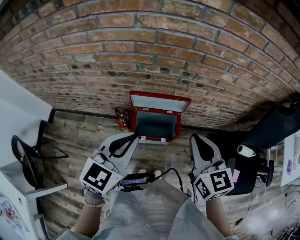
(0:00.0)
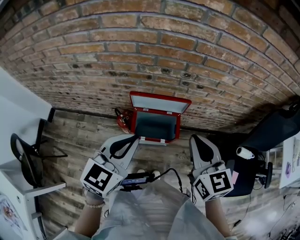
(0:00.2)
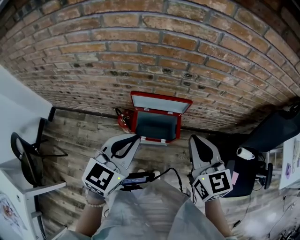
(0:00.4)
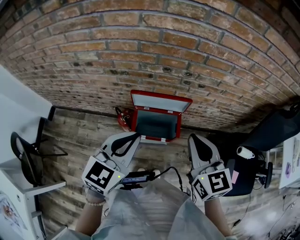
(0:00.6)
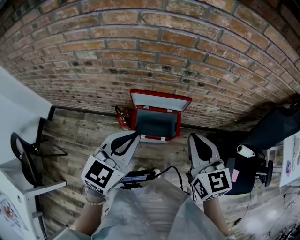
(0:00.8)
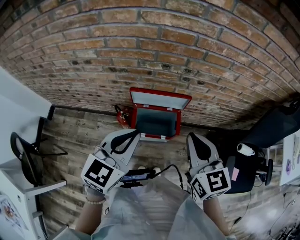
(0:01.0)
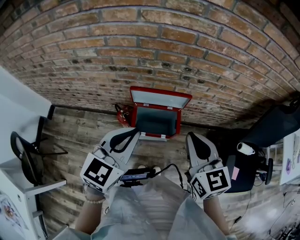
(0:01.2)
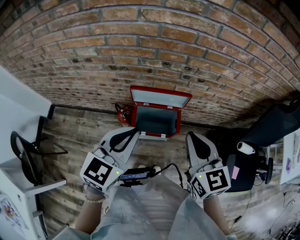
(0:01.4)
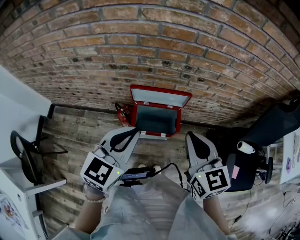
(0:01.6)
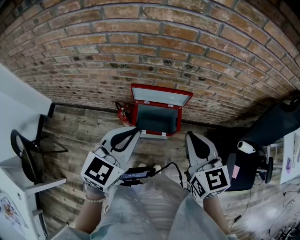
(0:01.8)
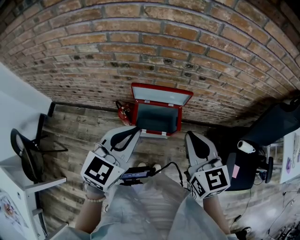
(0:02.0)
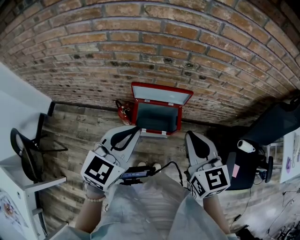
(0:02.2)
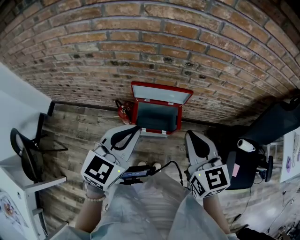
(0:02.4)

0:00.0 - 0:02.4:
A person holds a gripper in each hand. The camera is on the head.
0:00.0 - 0:02.4: The grippers stay close to where they were, moving slightly.

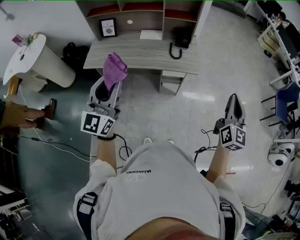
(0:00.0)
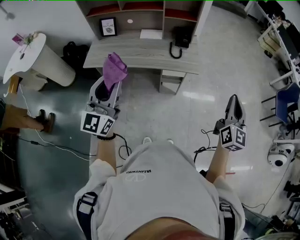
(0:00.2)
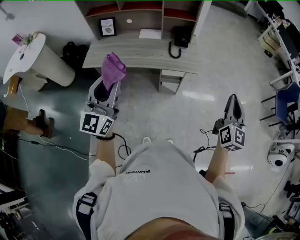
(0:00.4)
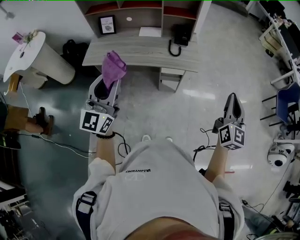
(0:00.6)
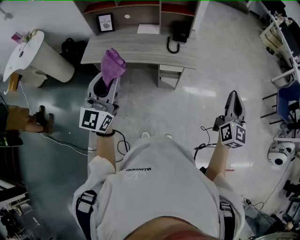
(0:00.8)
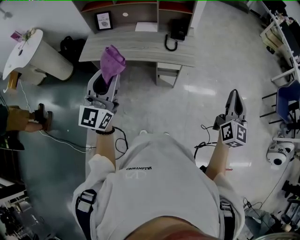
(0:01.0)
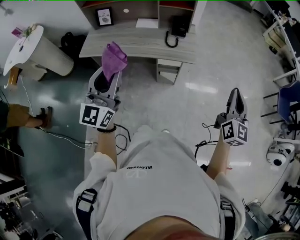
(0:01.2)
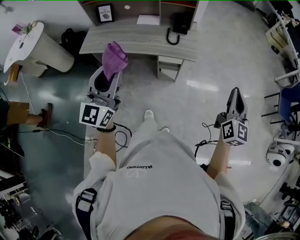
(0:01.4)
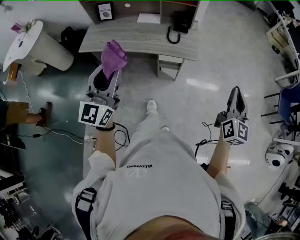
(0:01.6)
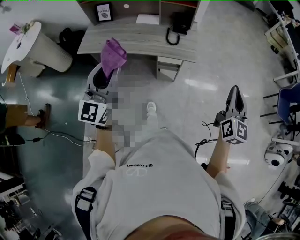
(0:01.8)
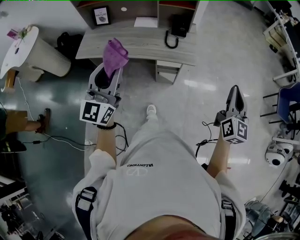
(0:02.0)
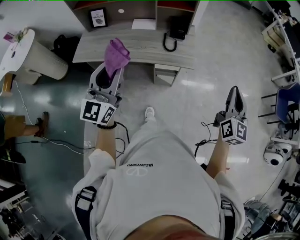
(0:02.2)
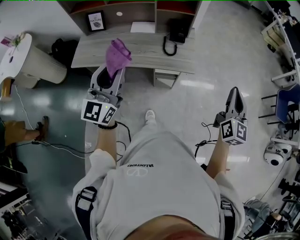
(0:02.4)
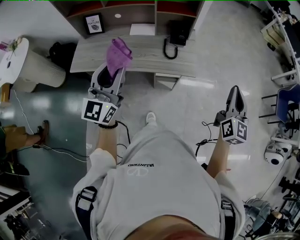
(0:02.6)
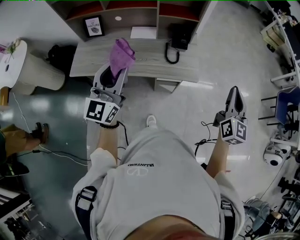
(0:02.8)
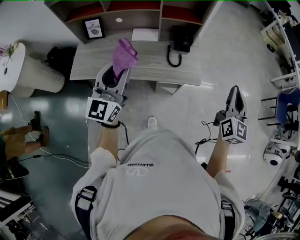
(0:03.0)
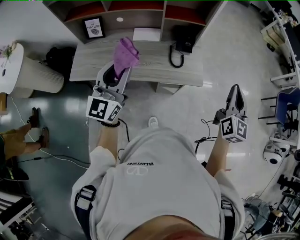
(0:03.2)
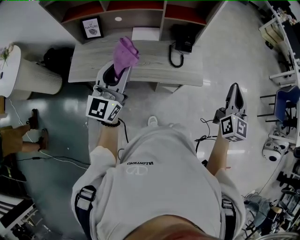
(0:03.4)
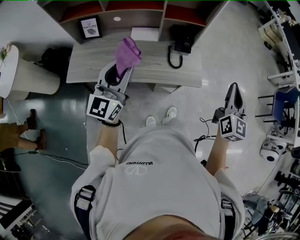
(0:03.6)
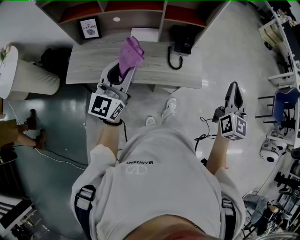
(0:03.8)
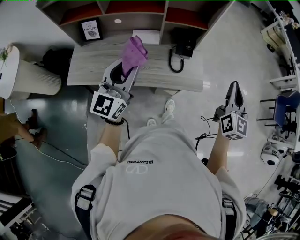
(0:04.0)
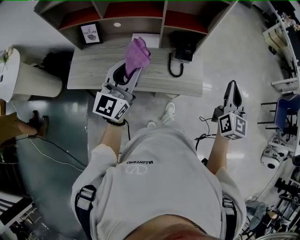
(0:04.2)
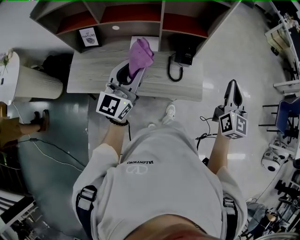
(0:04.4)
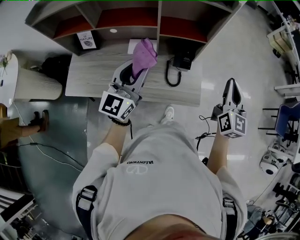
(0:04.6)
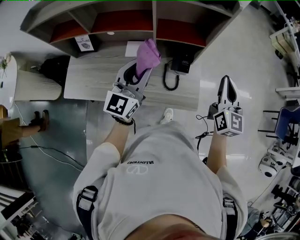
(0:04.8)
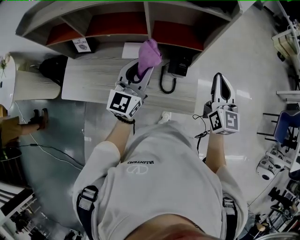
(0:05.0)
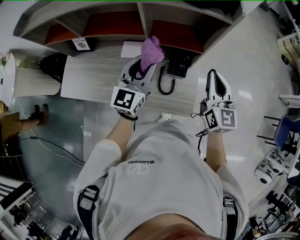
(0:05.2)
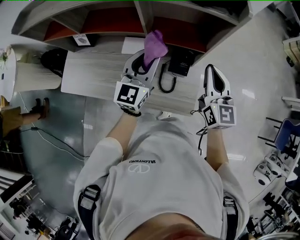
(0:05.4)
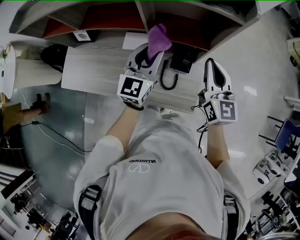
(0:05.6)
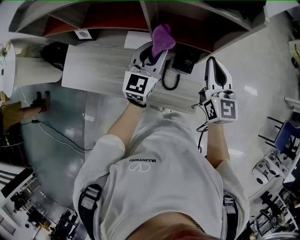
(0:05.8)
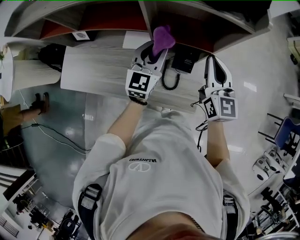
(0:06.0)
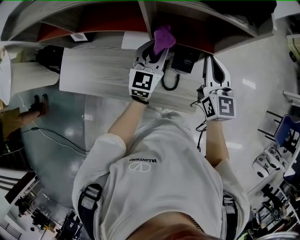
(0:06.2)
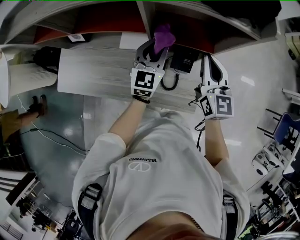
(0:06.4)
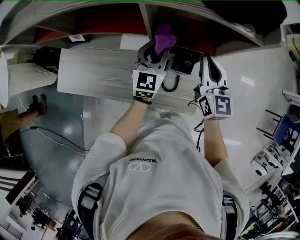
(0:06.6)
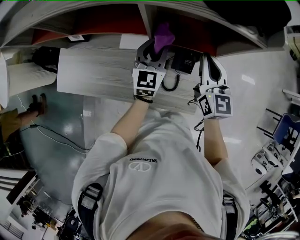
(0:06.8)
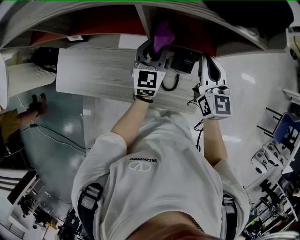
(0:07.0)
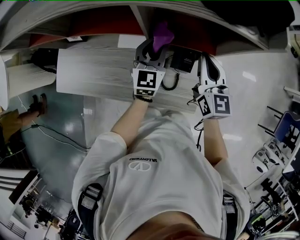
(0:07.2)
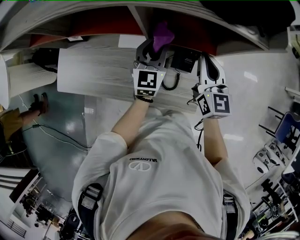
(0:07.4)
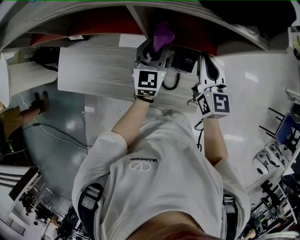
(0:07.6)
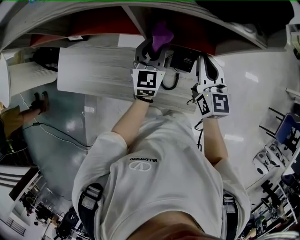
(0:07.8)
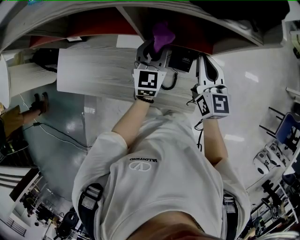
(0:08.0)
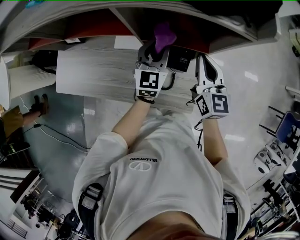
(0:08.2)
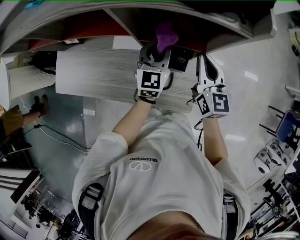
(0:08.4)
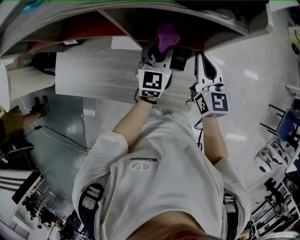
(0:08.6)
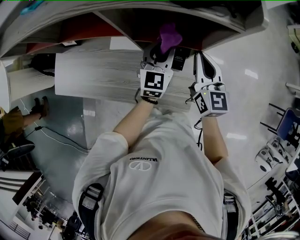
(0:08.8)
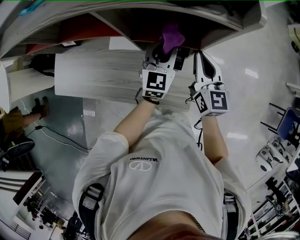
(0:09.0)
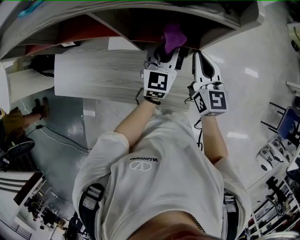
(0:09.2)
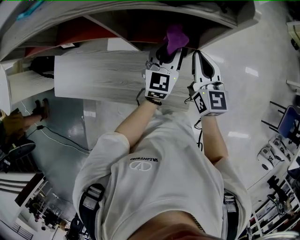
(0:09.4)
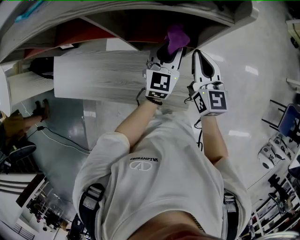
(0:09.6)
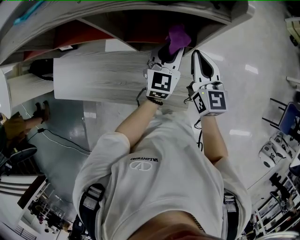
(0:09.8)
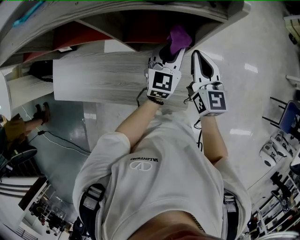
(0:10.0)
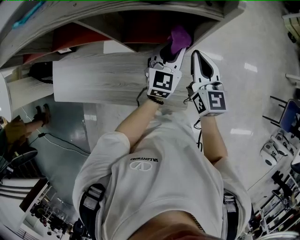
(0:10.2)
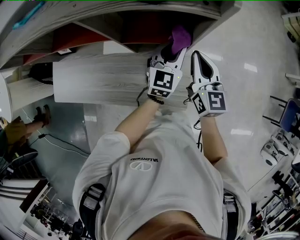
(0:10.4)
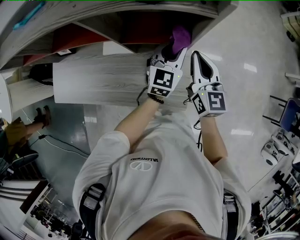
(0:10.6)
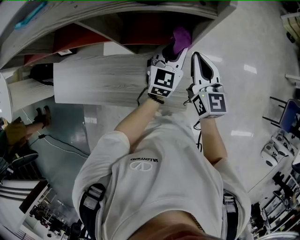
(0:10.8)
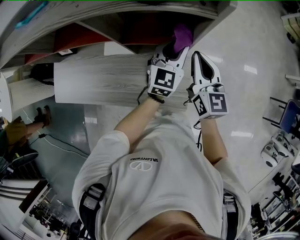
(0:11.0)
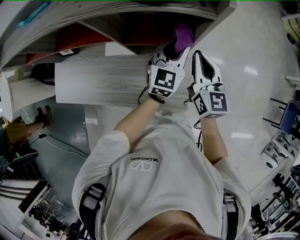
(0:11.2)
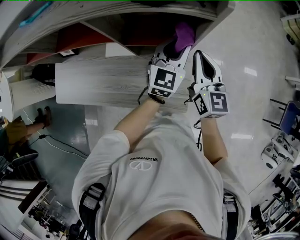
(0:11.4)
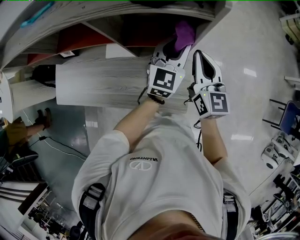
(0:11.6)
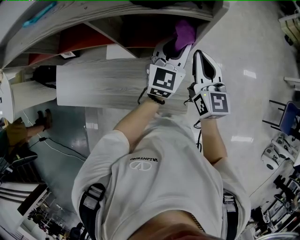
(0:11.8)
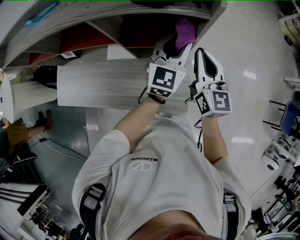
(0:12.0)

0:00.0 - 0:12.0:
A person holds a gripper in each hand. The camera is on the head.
0:00.0 - 0:01.6: Both grippers travel together to the right, some 5 cm.
0:01.6 - 0:03.0: The right gripper is displaced forward and to the left by roughly 20 cm; the left gripper goes some 25 cm forward.
0:03.0 - 0:04.4: The two grippers go some 15 cm forward.
0:04.4 - 0:06.0: The left gripper moves forward and downward, some 25 cm. The right gripper moves forward, roughly 25 cm, and swivels roughly 20 degrees.
0:06.0 - 0:07.6: Both grippers travel together downward, about 5 cm.
0:07.6 - 0:09.0: The right gripper shifts some 5 cm to the right. The left gripper goes about 10 cm to the right.
0:09.0 - 0:10.4: The left gripper goes about 5 cm to the right.
0:10.4 - 0:12.0: The left gripper travels upward by roughly 10 cm. The right gripper is displaced upward by approximately 5 cm.

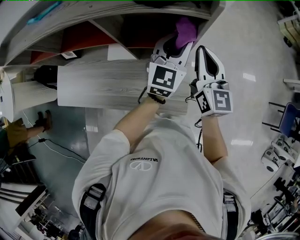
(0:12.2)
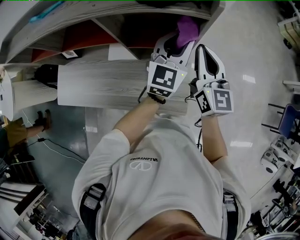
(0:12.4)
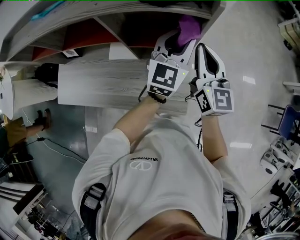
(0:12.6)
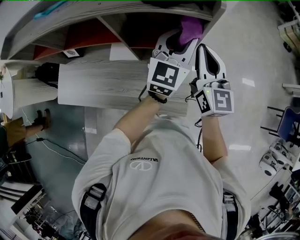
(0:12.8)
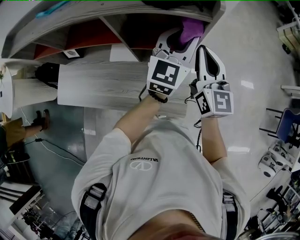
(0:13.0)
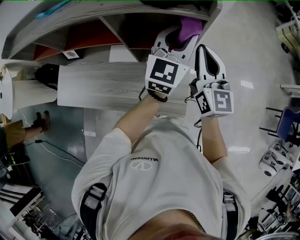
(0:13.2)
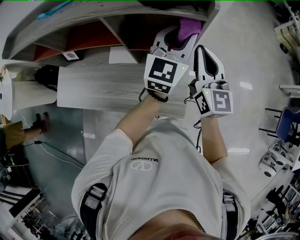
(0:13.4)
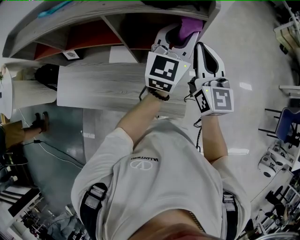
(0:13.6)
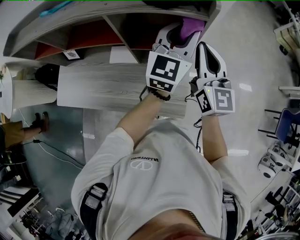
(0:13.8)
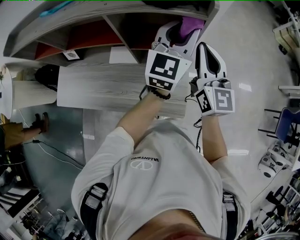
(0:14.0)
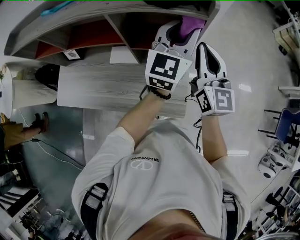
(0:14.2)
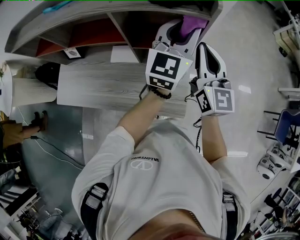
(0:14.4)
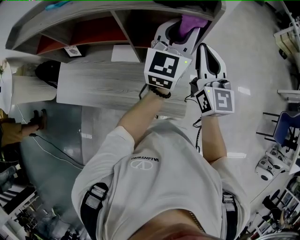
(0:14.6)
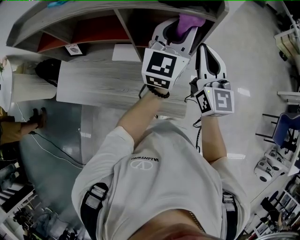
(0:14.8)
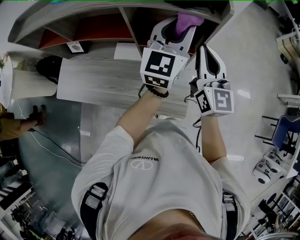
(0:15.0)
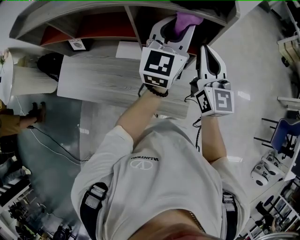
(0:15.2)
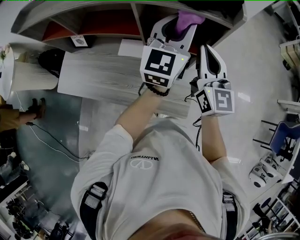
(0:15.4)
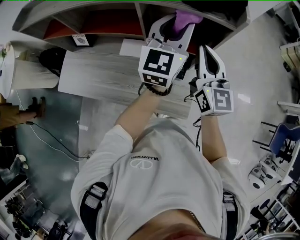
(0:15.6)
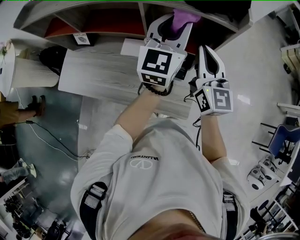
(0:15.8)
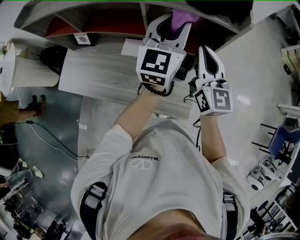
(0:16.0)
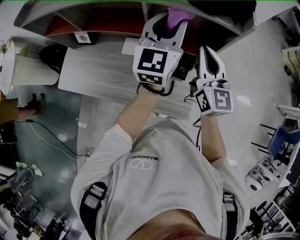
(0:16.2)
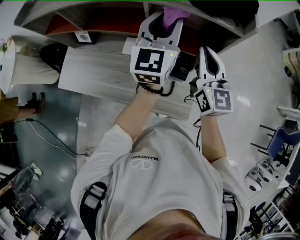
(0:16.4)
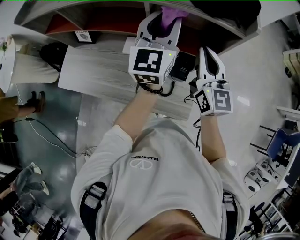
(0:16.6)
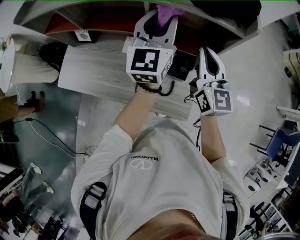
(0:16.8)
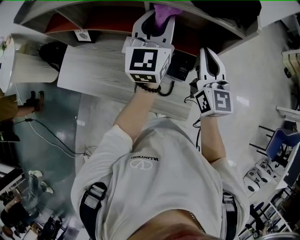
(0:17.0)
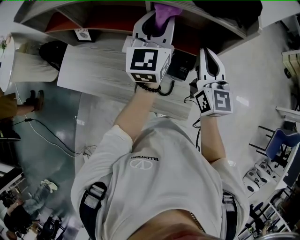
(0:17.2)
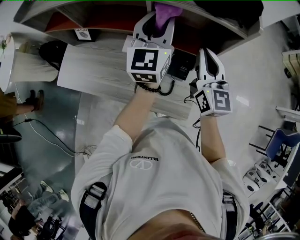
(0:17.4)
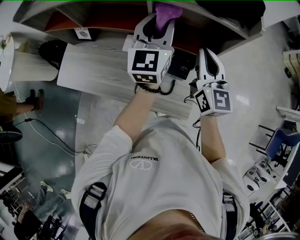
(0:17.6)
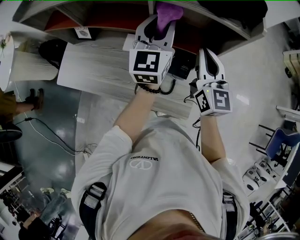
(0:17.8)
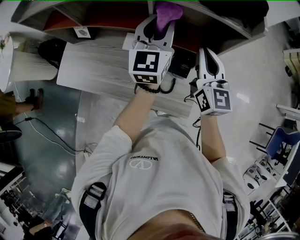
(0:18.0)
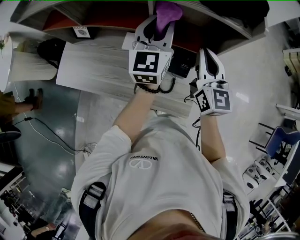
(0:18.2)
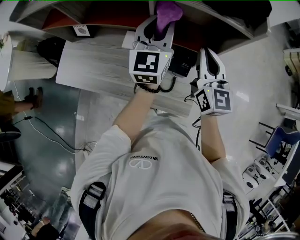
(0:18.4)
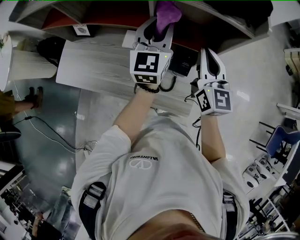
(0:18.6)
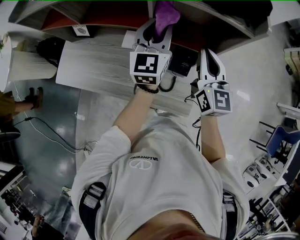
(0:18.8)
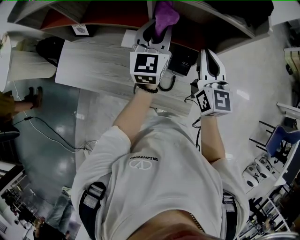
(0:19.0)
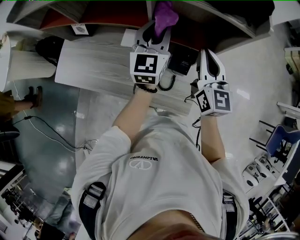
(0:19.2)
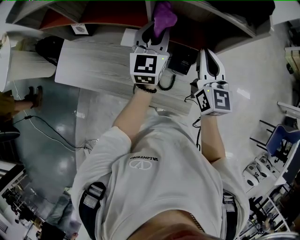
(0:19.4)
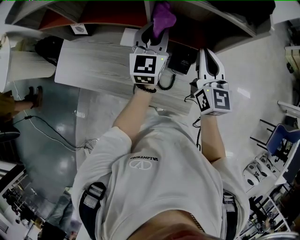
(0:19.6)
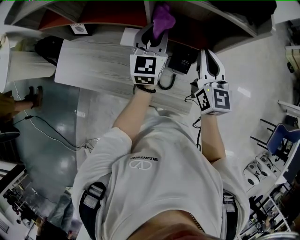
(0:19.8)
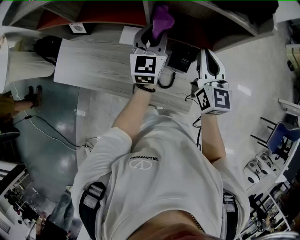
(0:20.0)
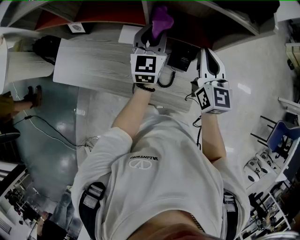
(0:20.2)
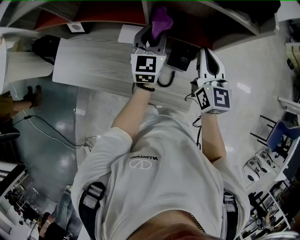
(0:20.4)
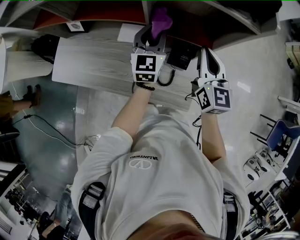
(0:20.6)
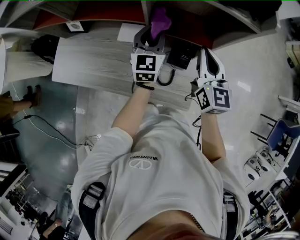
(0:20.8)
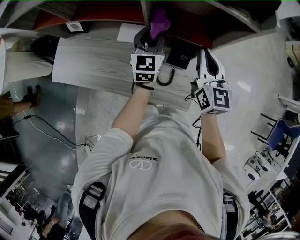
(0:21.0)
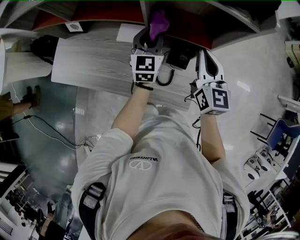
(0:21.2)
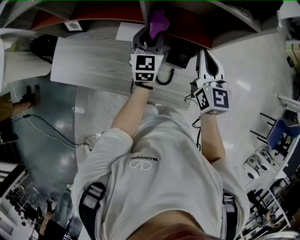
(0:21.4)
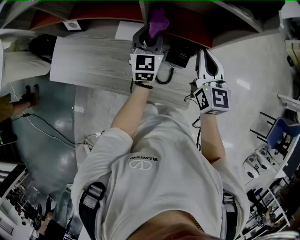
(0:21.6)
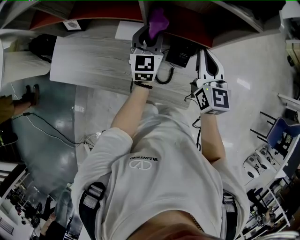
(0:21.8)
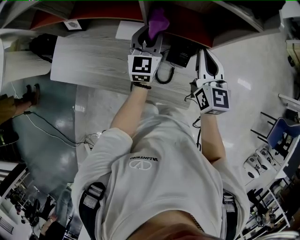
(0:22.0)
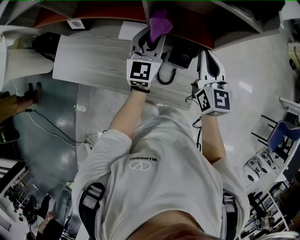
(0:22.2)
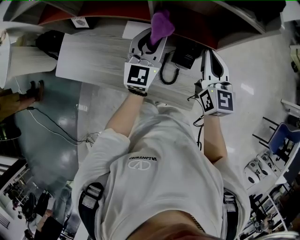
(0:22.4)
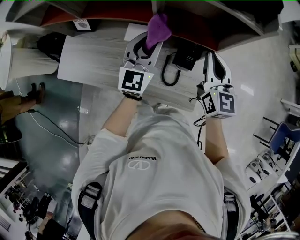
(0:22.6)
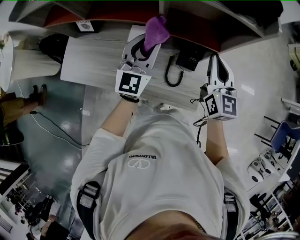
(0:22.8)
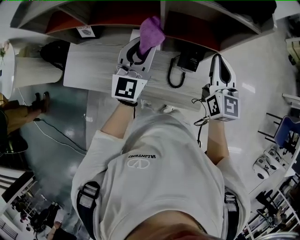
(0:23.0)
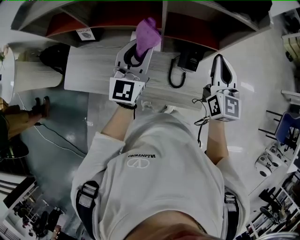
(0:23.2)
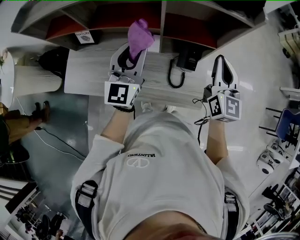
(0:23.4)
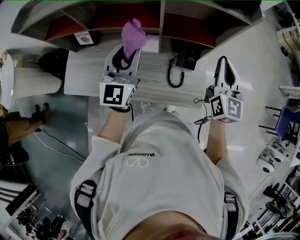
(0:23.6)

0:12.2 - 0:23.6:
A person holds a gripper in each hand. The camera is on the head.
0:12.2 - 0:13.6: The right gripper travels upward by some 5 cm. The left gripper goes roughly 10 cm upward.
0:13.6 - 0:15.0: The left gripper travels to the left by some 5 cm.
0:15.0 - 0:16.4: The left gripper is displaced to the left by about 10 cm, while the right gripper heads to the left, covering about 5 cm.
0:16.4 - 0:17.8: The left gripper changes place by some 5 cm.
0:17.8 - 0:19.4: The left gripper is displaced downward by some 10 cm.
0:19.4 - 0:20.8: The left gripper heads downward, covering about 10 cm.
0:20.8 - 0:22.2: There are only small adjustments of the grippers.
0:22.2 - 0:23.6: The right gripper travels upward and backward by about 10 cm. Meanwhile the left gripper heads upward, to the left and backward, covering some 20 cm.
